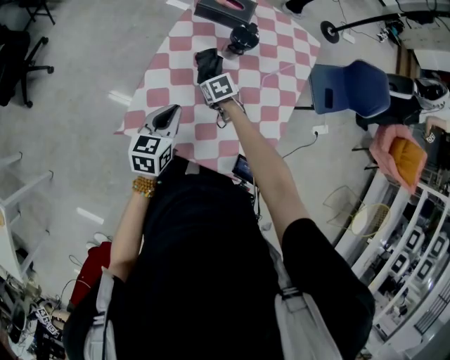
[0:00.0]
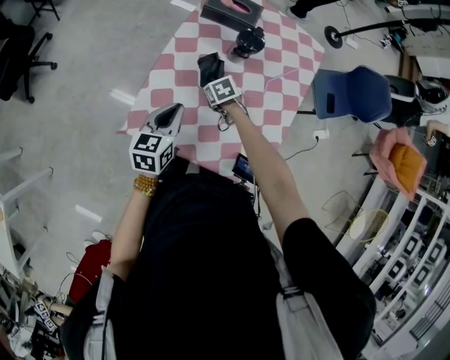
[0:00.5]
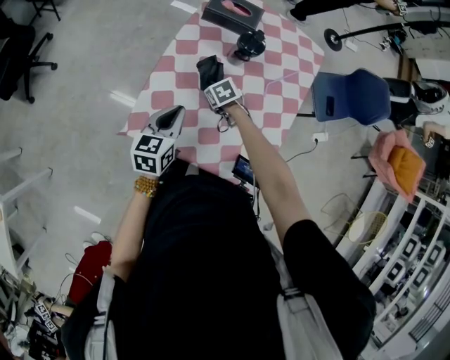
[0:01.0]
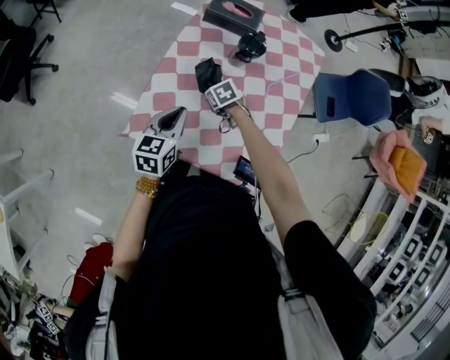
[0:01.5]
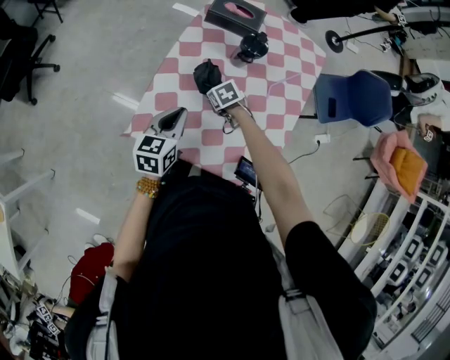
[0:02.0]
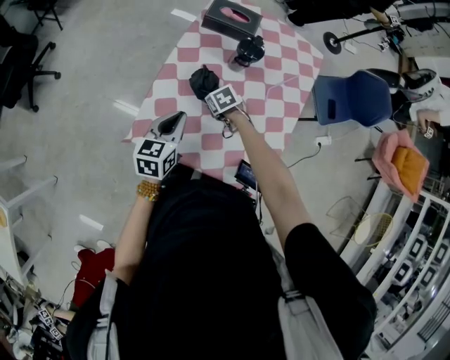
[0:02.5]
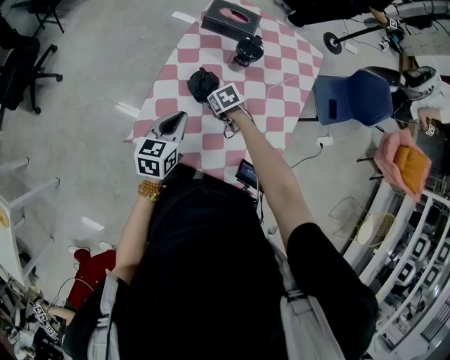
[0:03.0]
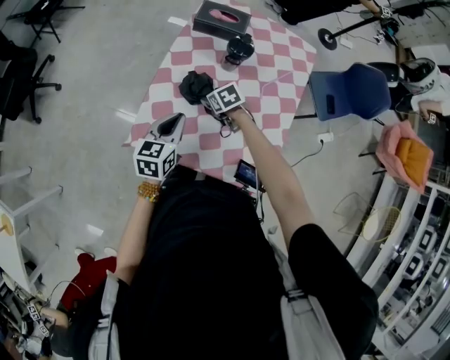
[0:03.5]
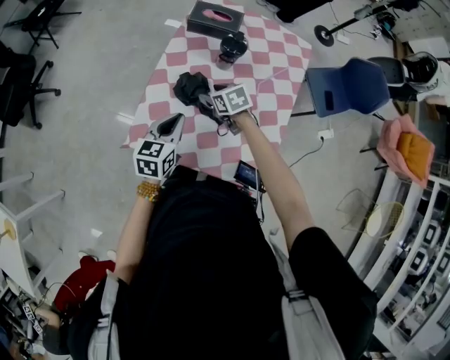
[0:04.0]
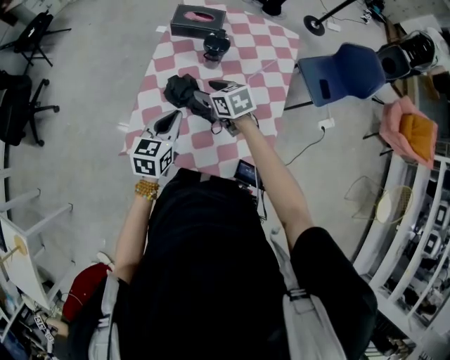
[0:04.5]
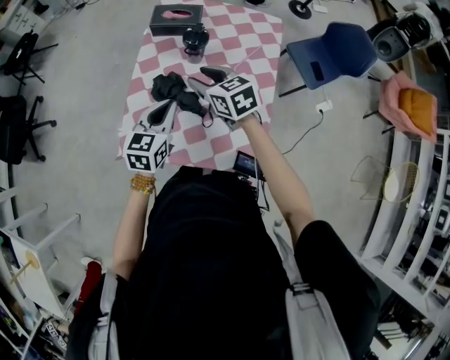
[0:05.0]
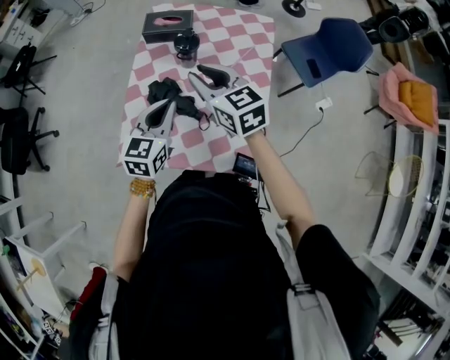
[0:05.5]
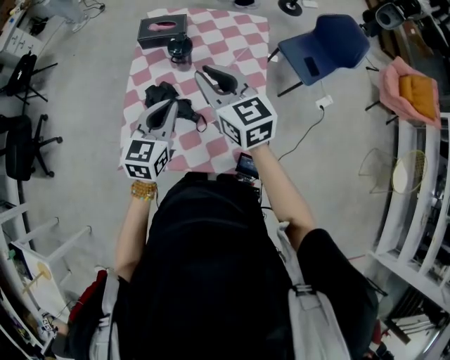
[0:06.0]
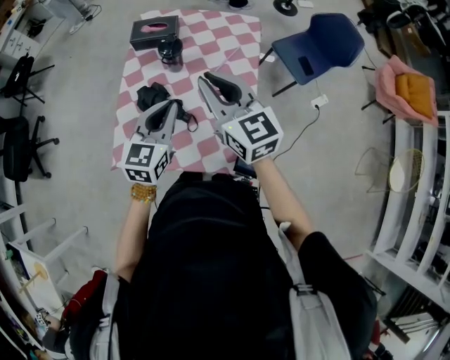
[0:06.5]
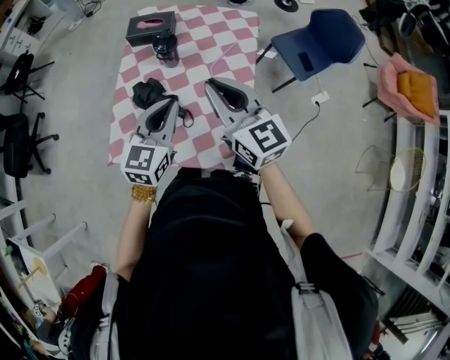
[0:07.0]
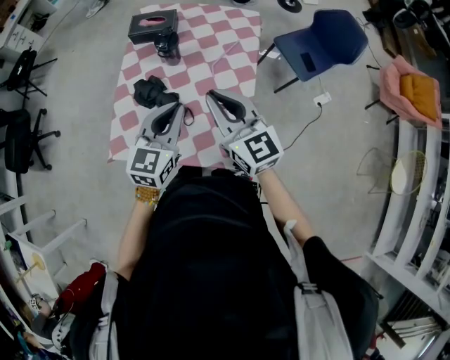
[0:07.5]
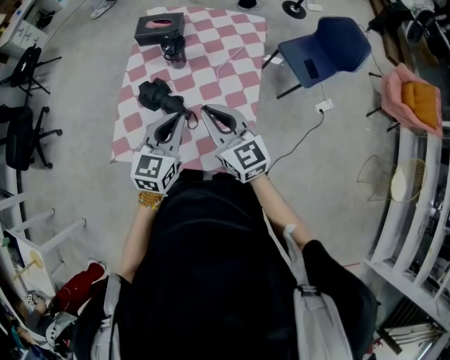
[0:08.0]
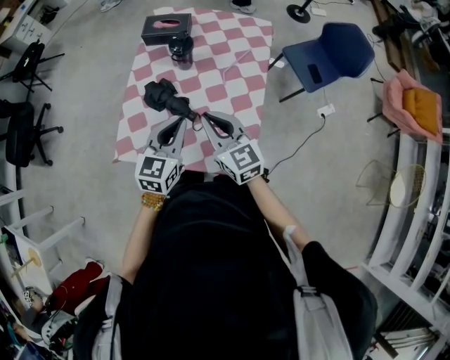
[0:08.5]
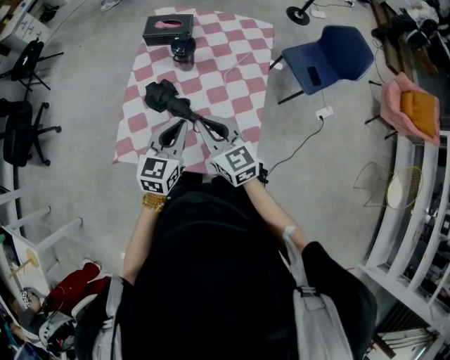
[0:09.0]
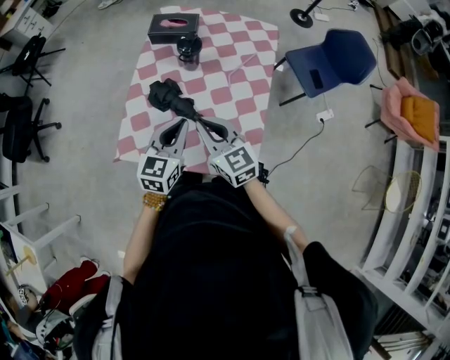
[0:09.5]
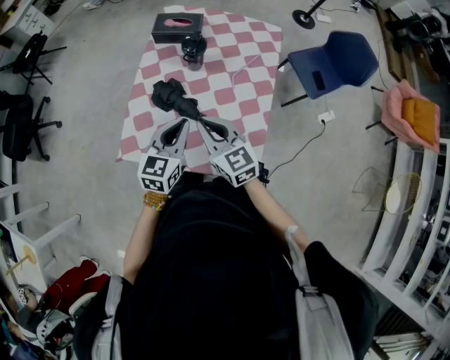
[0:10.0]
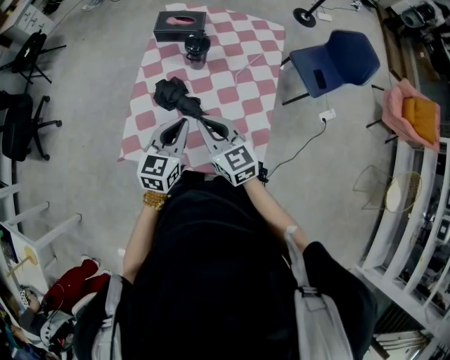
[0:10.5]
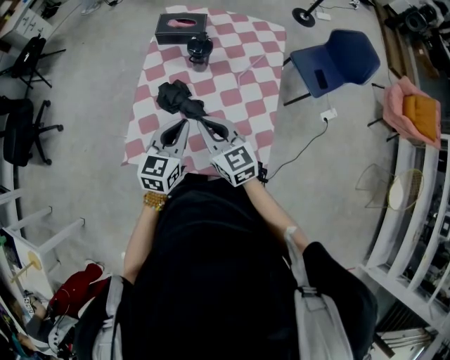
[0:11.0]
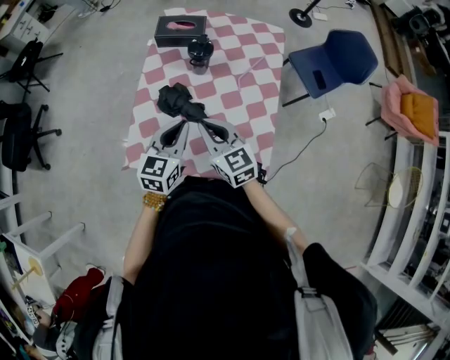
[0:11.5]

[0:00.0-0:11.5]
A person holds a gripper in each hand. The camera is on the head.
0.0 to 2.0 s: The grippers move only a little.
2.0 to 4.0 s: The right gripper heads upward, covering approximately 10 cm.
4.0 to 6.0 s: The left gripper moves upward and to the right, some 15 cm, and rotates some 20 degrees; the right gripper shifts roughly 30 cm upward, angles its fingers upward, by some 40 degrees, and closes up.
6.0 to 7.5 s: The left gripper goes approximately 5 cm to the right; the right gripper is displaced backward and to the right by some 10 cm.
7.5 to 9.5 s: The left gripper heads downward and to the left, covering about 10 cm. Meanwhile the right gripper goes approximately 15 cm downward and to the left.
9.5 to 11.5 s: The right gripper changes place by approximately 5 cm, while the left gripper shifts by approximately 5 cm.

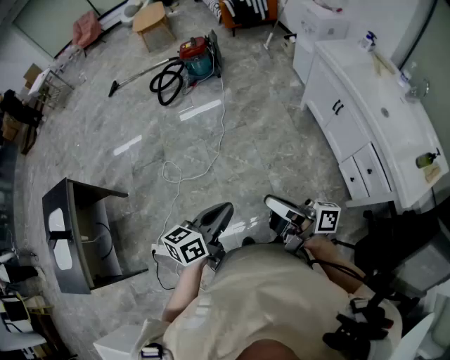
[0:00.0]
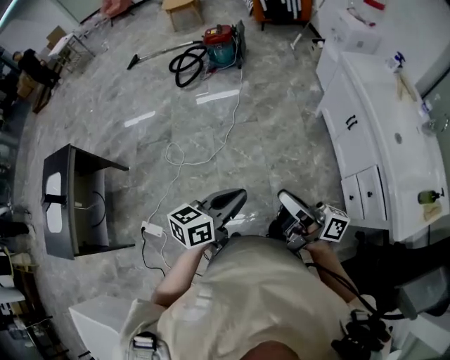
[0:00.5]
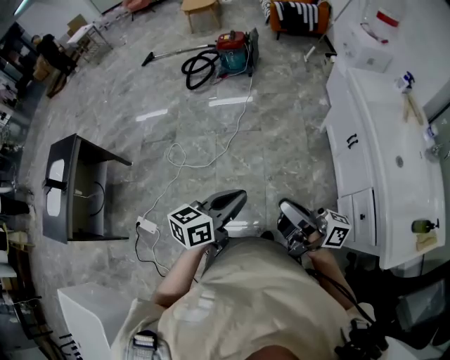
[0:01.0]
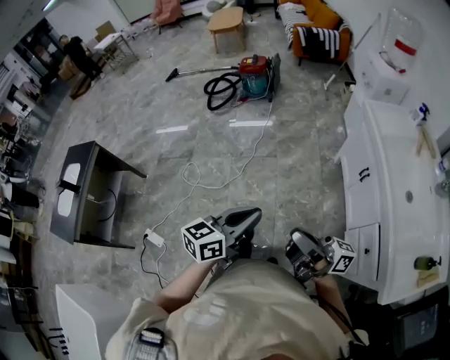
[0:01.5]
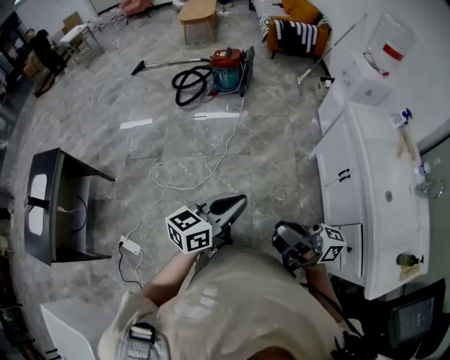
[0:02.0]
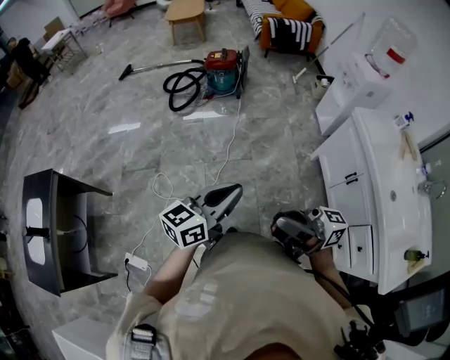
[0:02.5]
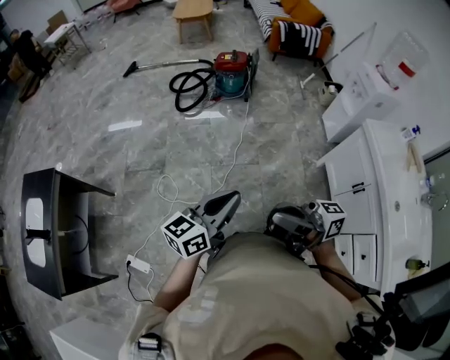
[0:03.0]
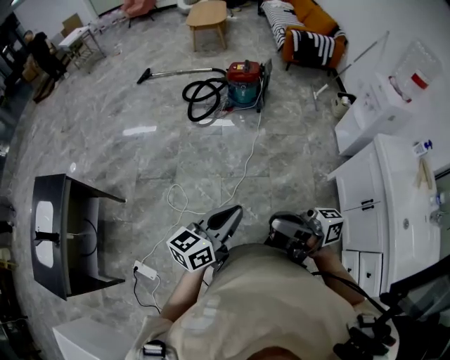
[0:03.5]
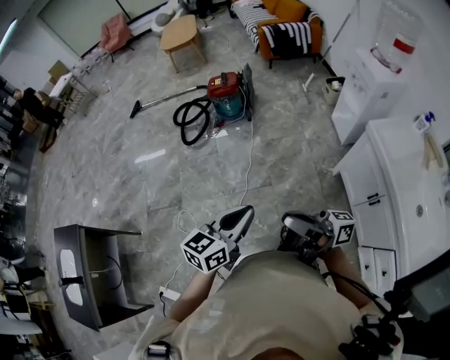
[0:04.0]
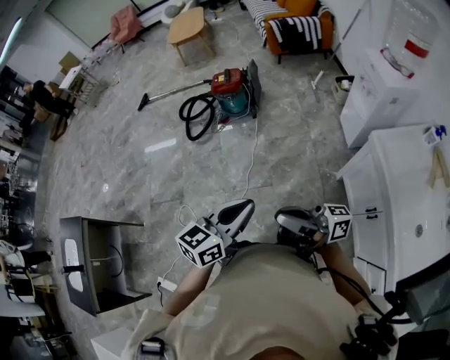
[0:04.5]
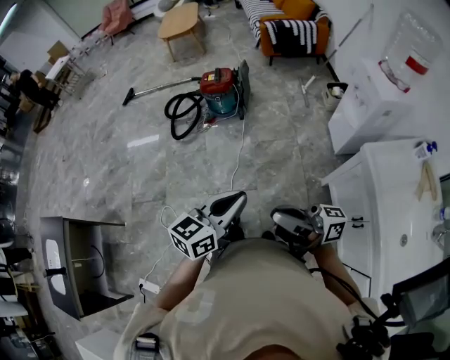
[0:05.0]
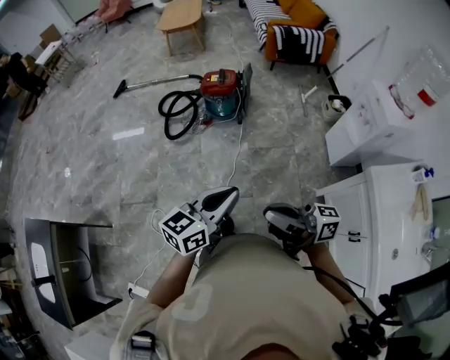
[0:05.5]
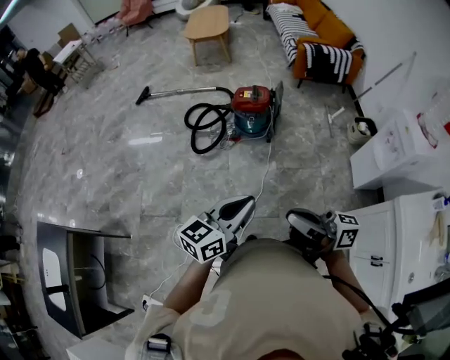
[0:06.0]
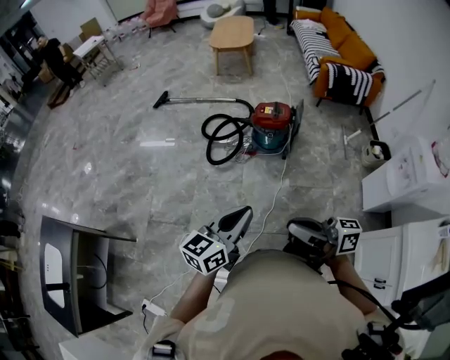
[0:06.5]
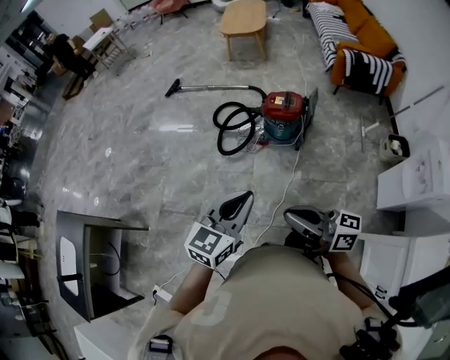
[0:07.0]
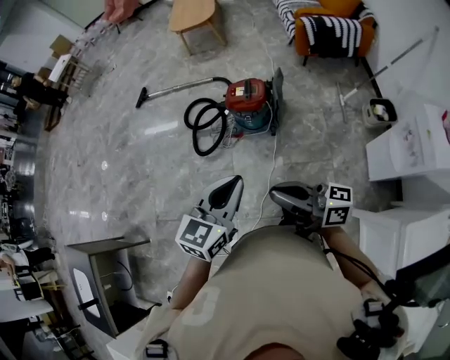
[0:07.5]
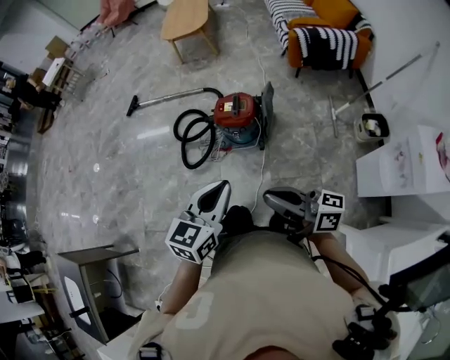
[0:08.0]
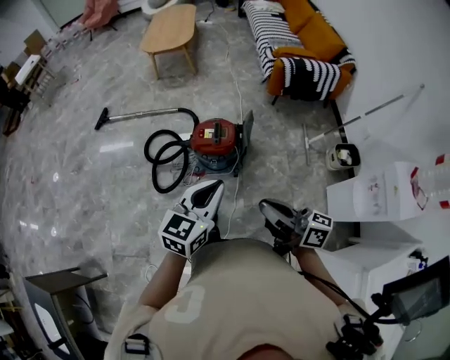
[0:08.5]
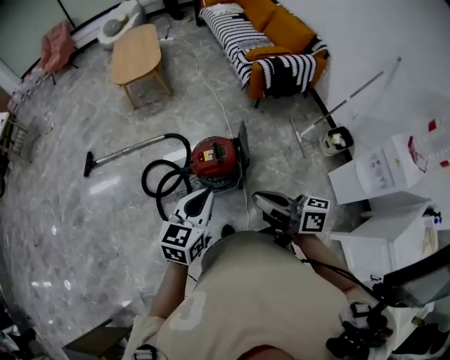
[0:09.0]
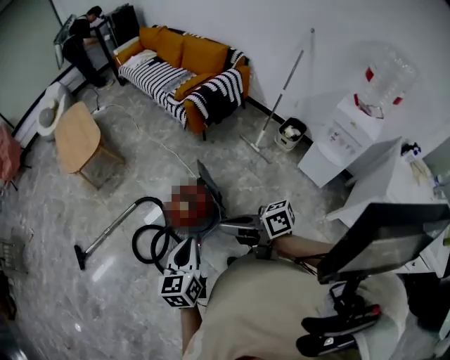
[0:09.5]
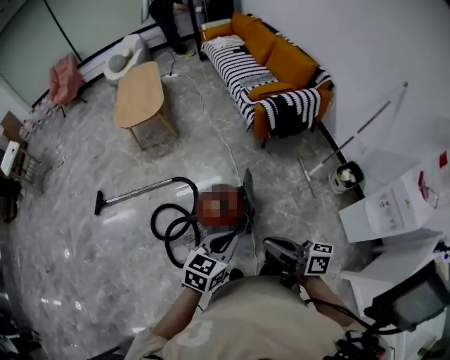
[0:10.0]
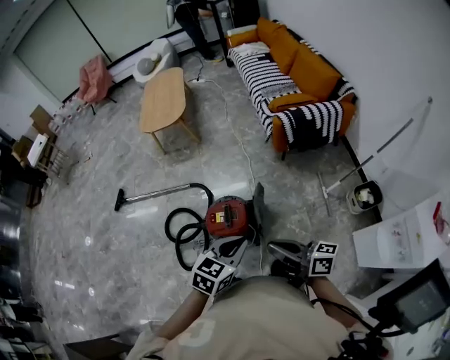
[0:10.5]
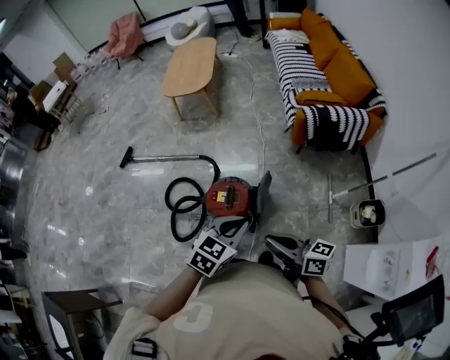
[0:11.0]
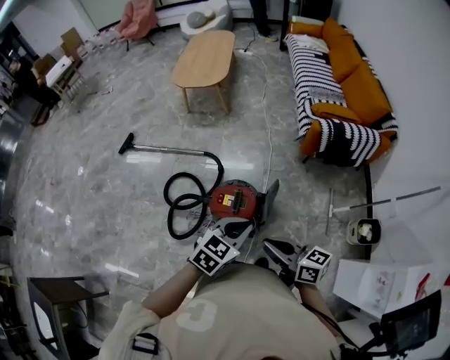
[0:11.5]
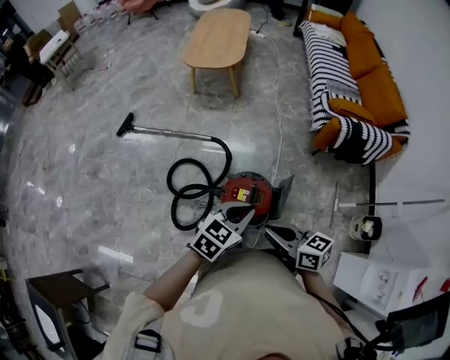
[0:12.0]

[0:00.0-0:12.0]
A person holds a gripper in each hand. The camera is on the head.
0.0 to 2.0 s: The left gripper is displaced forward and to the right by some 20 cm, while the right gripper travels to the right and forward by roughly 15 cm, and swivels some 20 degrees.
2.0 to 4.0 s: The grippers both shift forward by approximately 25 cm.
4.0 to 6.0 s: The grippers both shift forward by roughly 30 cm.
6.0 to 8.0 s: Both grippers travel together forward and to the right, roughly 35 cm. The left gripper rotates about 30 degrees.
8.0 to 10.0 s: The left gripper ends up roughly 30 cm from where it was, and changes its angle by some 30 degrees. The right gripper ends up approximately 30 cm from where it was, and rotates roughly 30 degrees.
10.0 to 12.0 s: The right gripper goes approximately 20 cm forward, to the left and downward, and swivels some 40 degrees, while the left gripper moves forward, roughly 15 cm, and moves approximately 10 cm to the right and comes back.

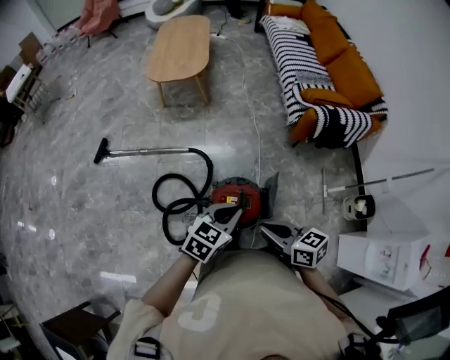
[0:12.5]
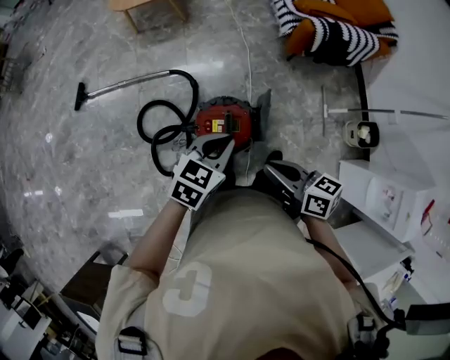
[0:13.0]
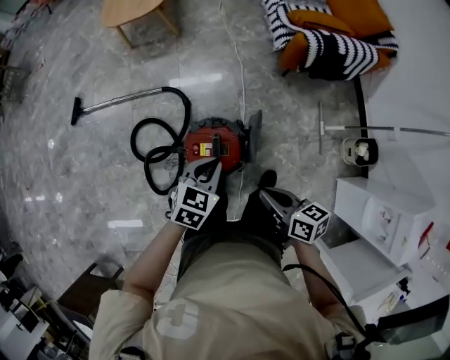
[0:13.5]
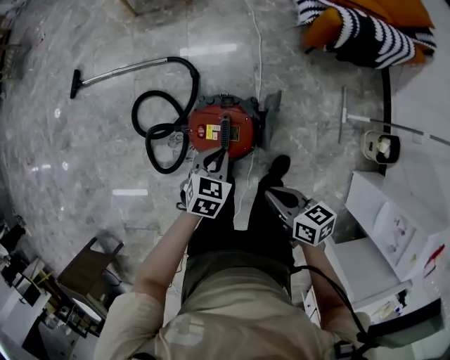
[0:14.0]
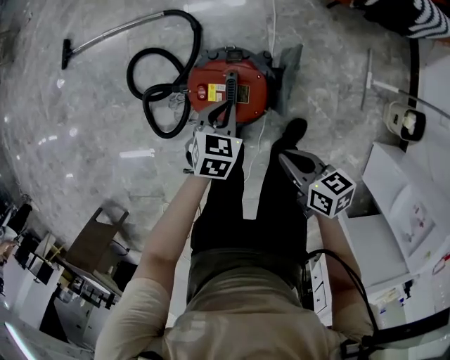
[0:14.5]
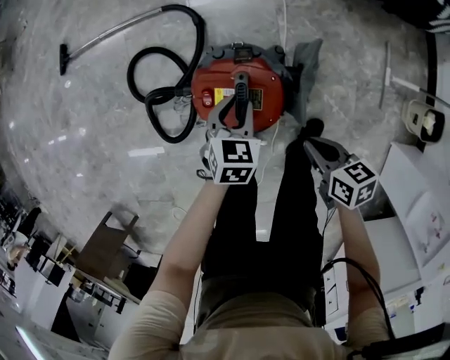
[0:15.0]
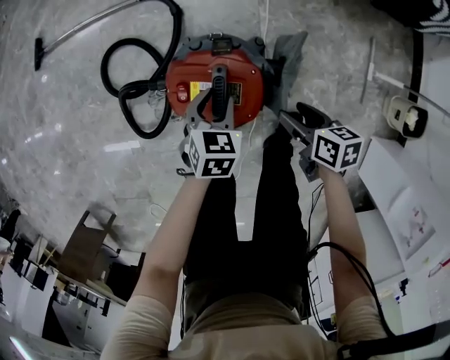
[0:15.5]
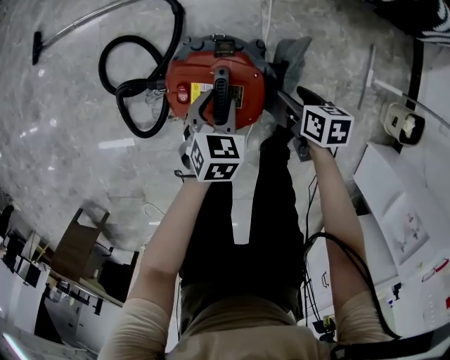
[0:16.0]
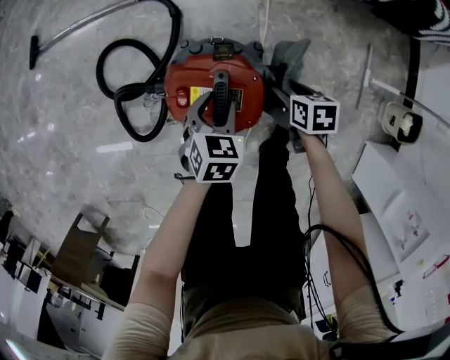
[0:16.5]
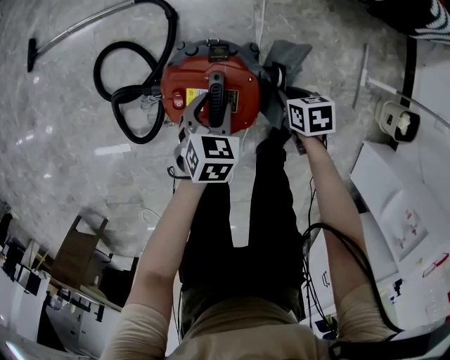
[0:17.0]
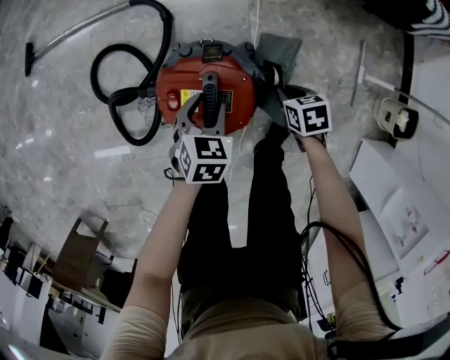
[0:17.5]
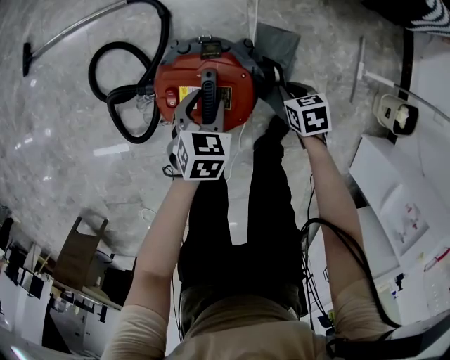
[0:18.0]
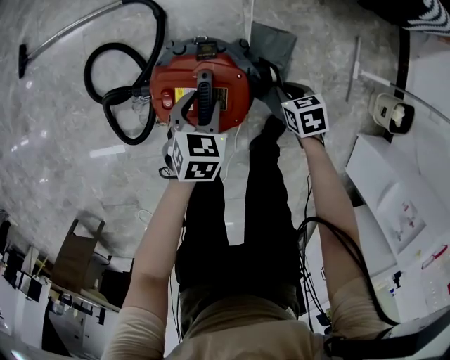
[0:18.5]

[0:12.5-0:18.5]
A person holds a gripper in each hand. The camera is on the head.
12.5 to 14.5 s: Both grippers move downward, about 30 cm. The right gripper changes its angle by approximately 20 degrees; the left gripper turns by roughly 30 degrees.
14.5 to 16.5 s: The right gripper is displaced downward and forward by approximately 25 cm, turns by roughly 30 degrees, and opens up. The left gripper travels downward by approximately 10 cm, and opens up.
16.5 to 18.5 s: The right gripper changes place by about 5 cm, and closes.
